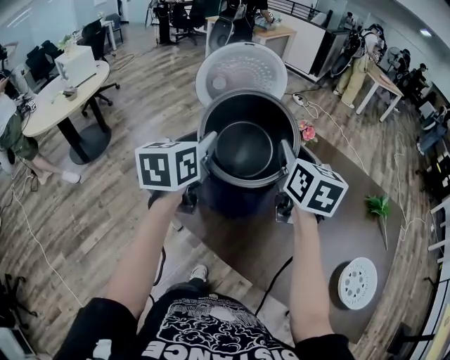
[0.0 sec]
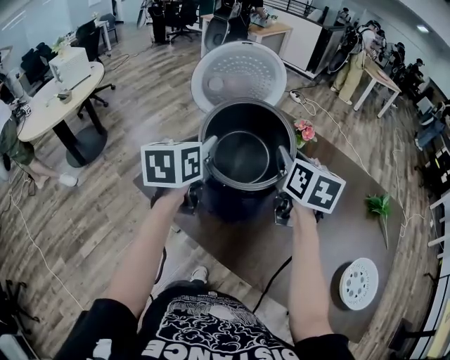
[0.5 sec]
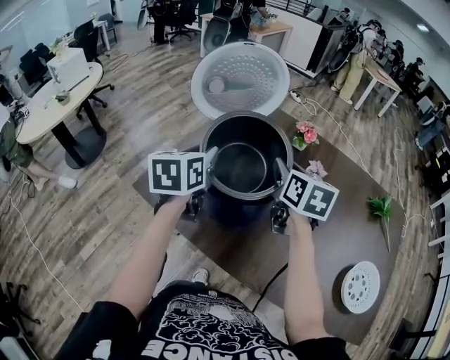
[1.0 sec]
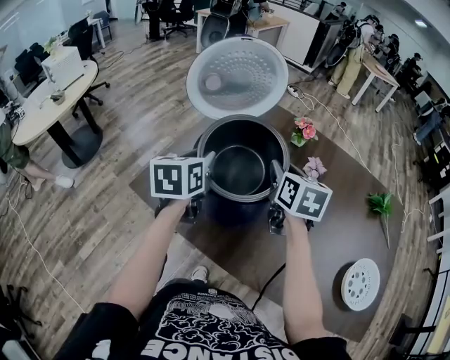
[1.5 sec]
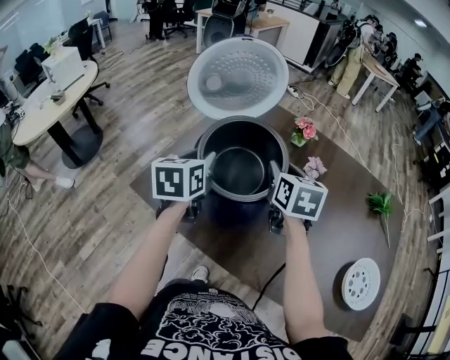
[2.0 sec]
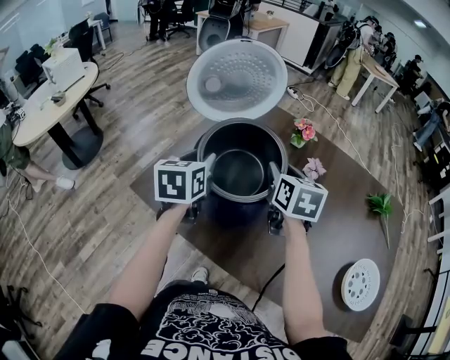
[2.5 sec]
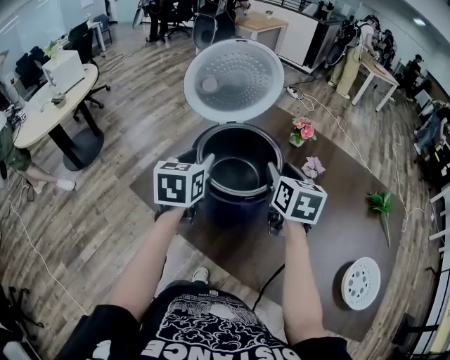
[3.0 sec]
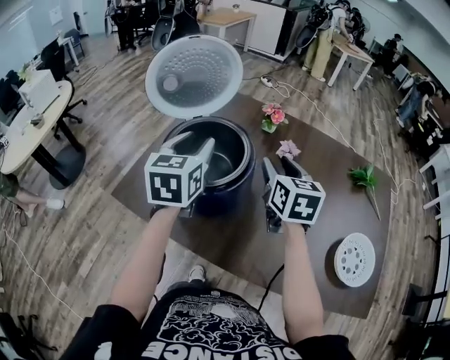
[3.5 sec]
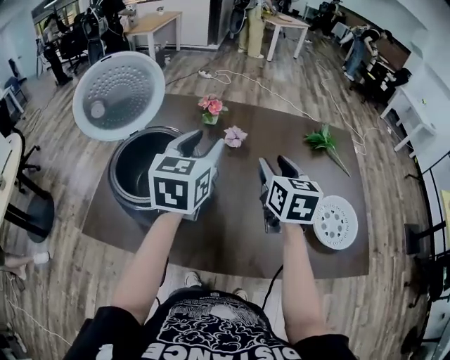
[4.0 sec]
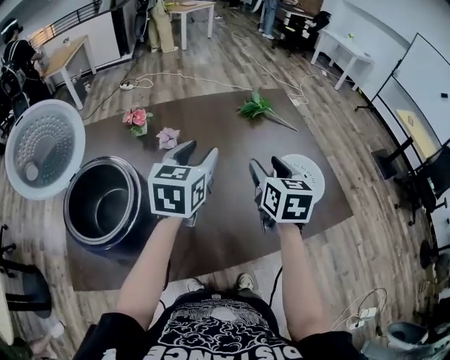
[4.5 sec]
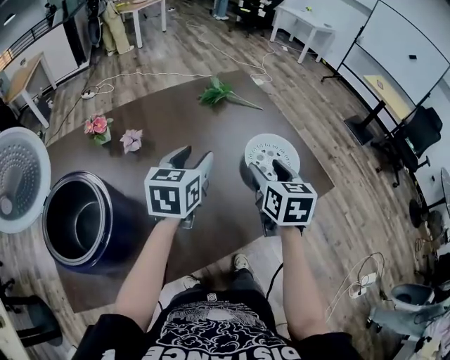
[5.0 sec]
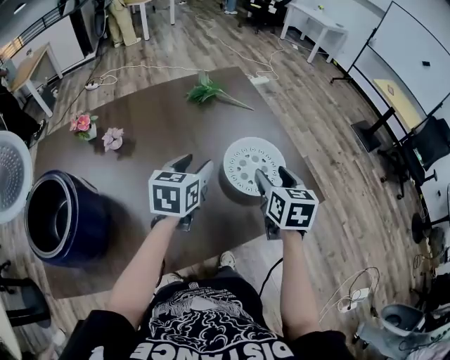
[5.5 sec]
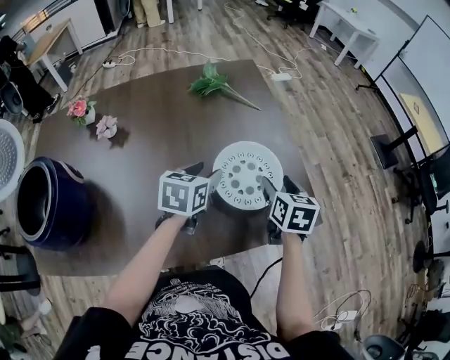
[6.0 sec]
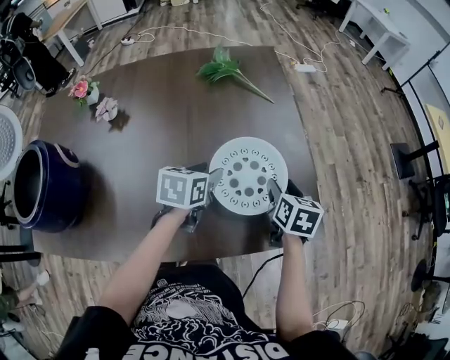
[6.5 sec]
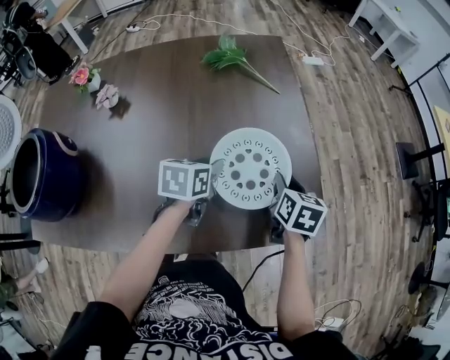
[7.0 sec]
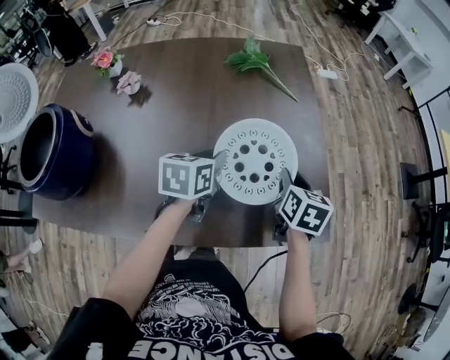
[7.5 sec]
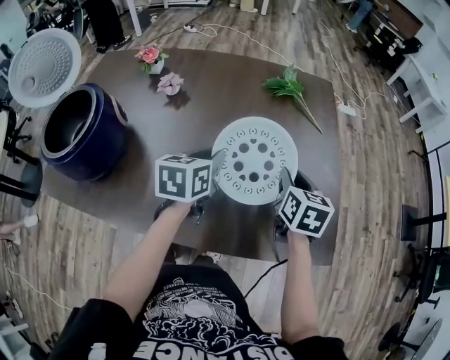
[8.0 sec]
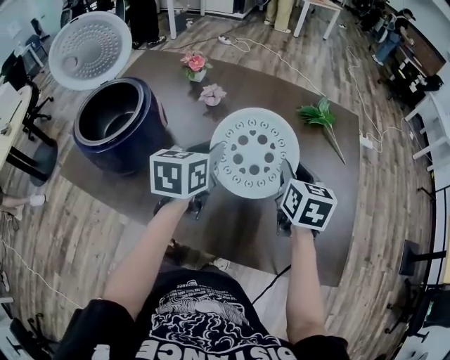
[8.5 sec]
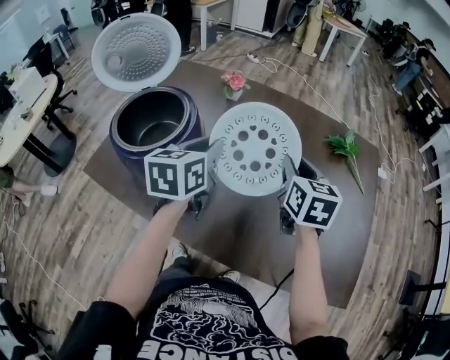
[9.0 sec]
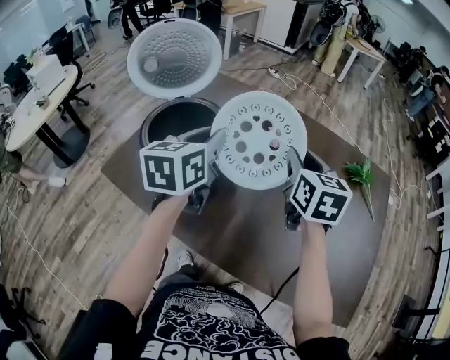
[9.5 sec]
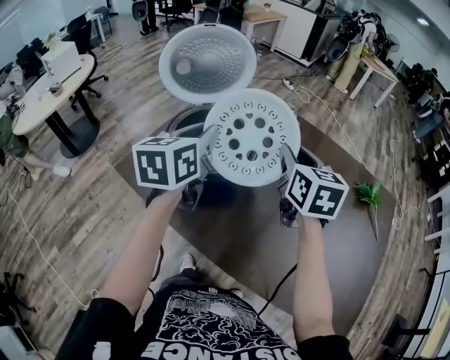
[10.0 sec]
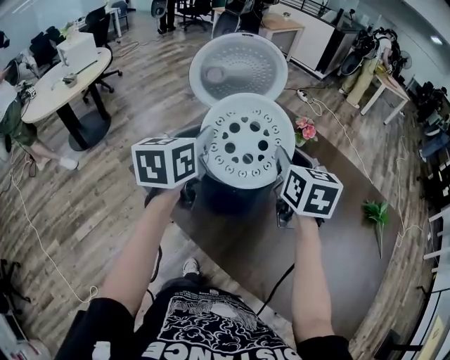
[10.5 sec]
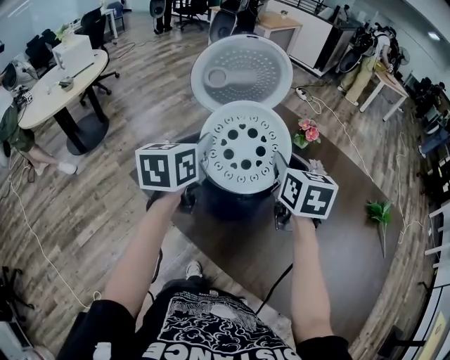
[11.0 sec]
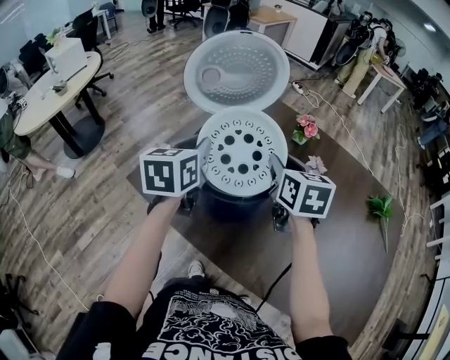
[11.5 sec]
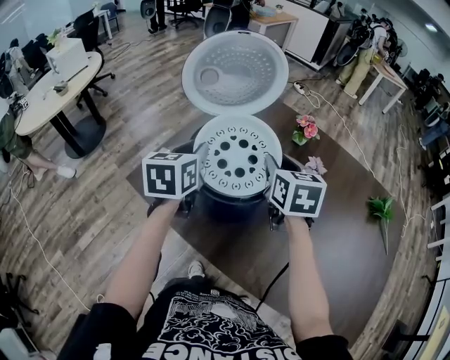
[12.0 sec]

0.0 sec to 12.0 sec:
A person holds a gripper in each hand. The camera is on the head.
0.0 sec to 2.0 sec: Both grippers move downward, roughly 10 cm.
2.0 sec to 4.0 sec: The right gripper changes place by roughly 25 cm, and rotates approximately 20 degrees. Meanwhile the left gripper changes place by approximately 30 cm, and turns by about 30 degrees.
4.0 sec to 6.0 sec: The two grippers travel together, roughly 40 cm. The right gripper rotates about 30 degrees. The left gripper rotates roughly 40 degrees.
6.0 sec to 8.0 sec: The two grippers go about 10 cm to the left. The left gripper changes its angle by some 30 degrees. The right gripper closes its fingers.
8.0 sec to 10.0 sec: The two grippers travel together, approximately 40 cm. The right gripper rotates about 40 degrees. The left gripper swivels roughly 40 degrees.
10.0 sec to 12.0 sec: The two grippers go roughly 15 cm to the left and downward.

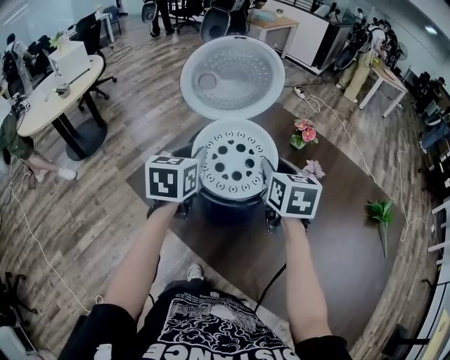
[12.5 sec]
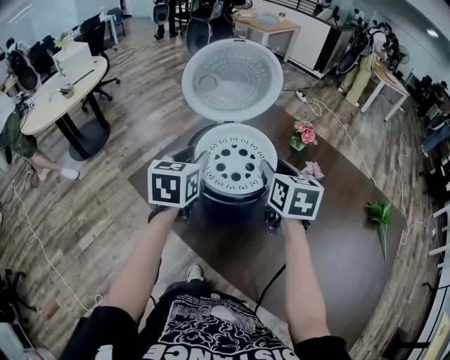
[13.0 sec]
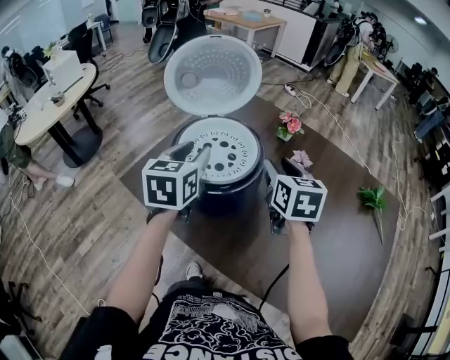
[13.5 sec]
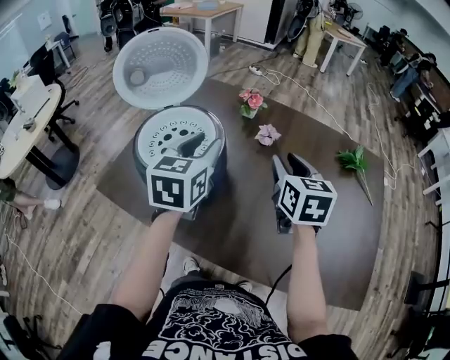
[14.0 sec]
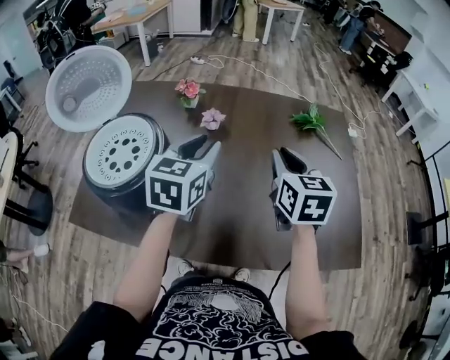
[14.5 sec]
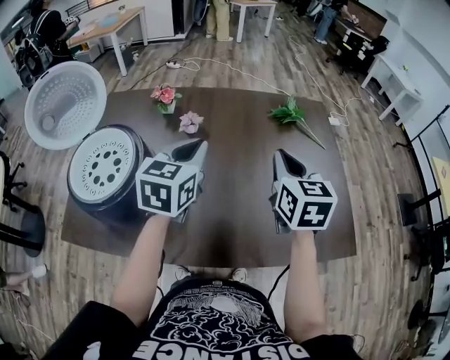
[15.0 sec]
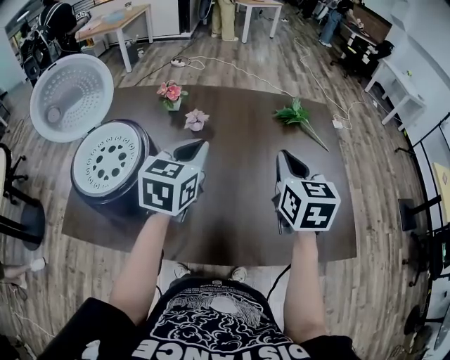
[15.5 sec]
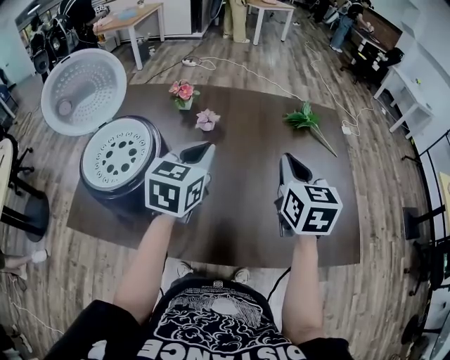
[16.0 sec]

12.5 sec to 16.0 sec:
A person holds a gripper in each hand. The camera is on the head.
12.5 sec to 14.5 sec: The right gripper ends up roughly 35 cm from where it was, and changes its angle by about 30 degrees, while the left gripper changes place by approximately 35 cm, and rotates approximately 40 degrees.
14.5 sec to 16.0 sec: The grippers make only small movements.

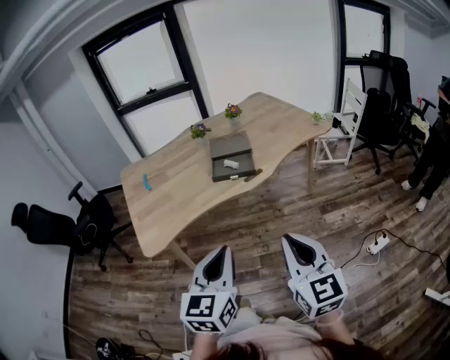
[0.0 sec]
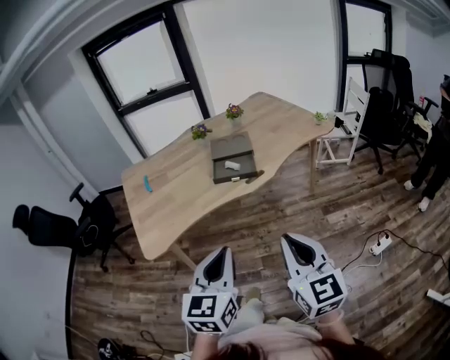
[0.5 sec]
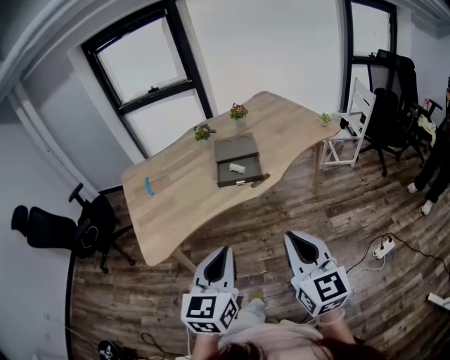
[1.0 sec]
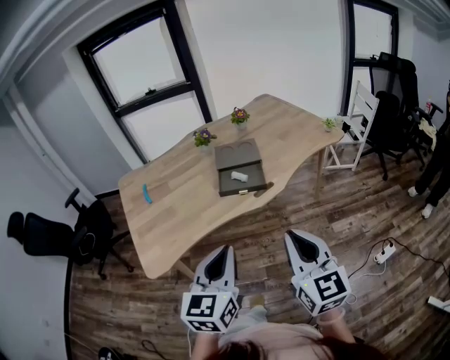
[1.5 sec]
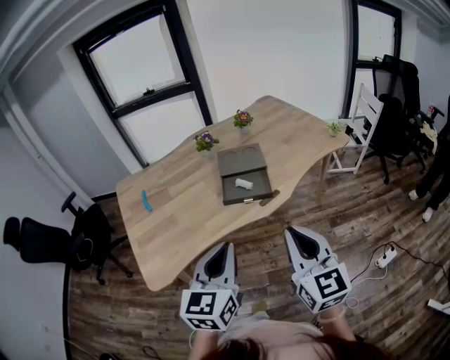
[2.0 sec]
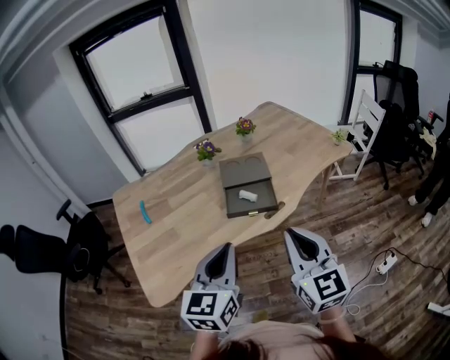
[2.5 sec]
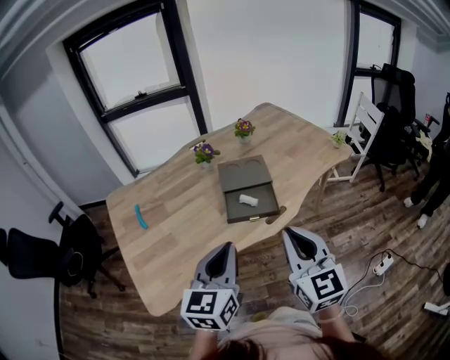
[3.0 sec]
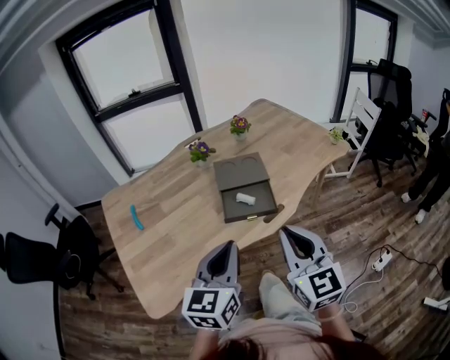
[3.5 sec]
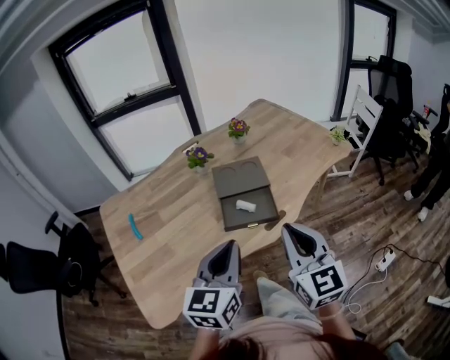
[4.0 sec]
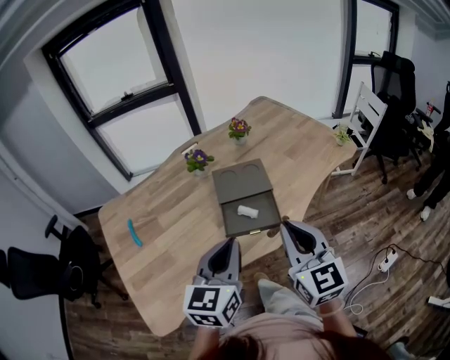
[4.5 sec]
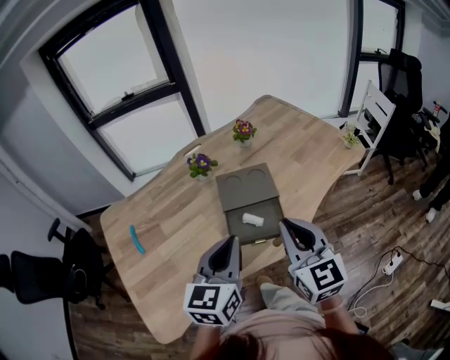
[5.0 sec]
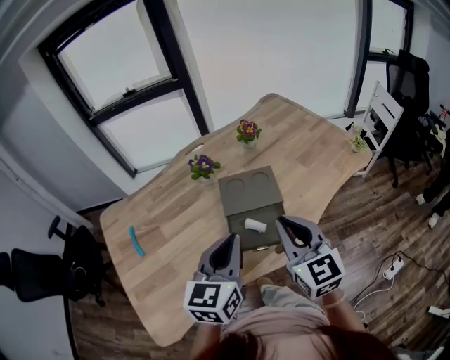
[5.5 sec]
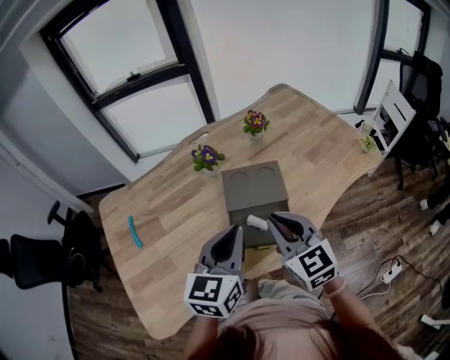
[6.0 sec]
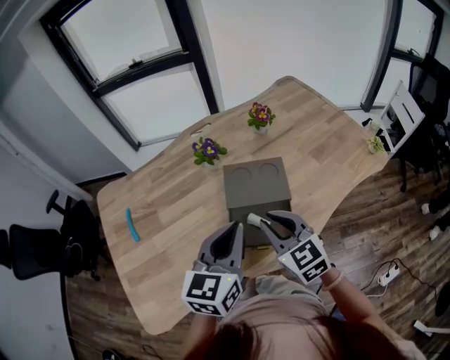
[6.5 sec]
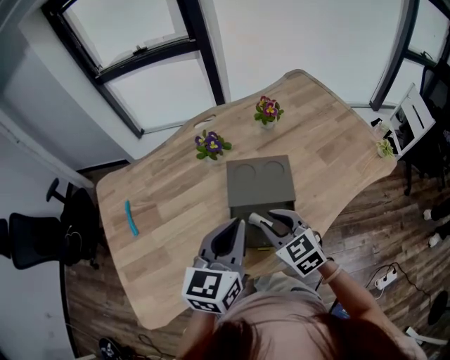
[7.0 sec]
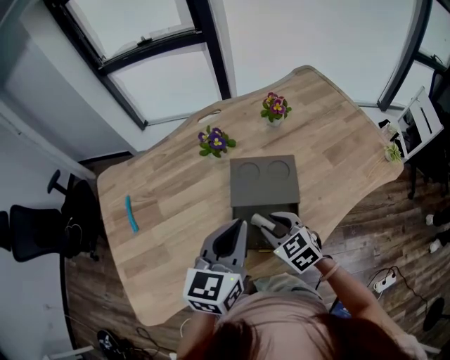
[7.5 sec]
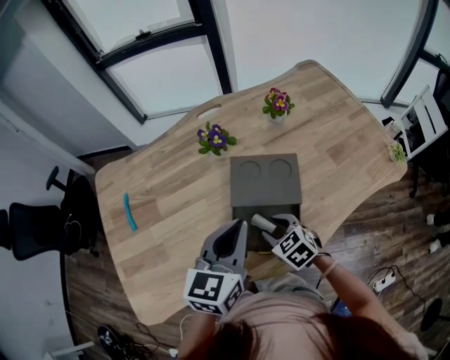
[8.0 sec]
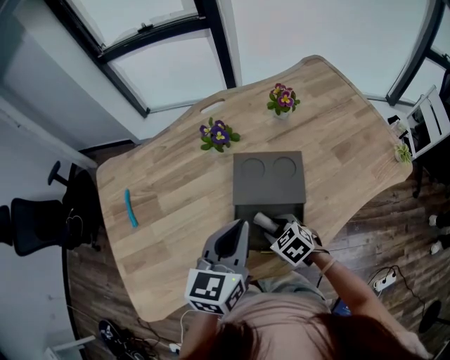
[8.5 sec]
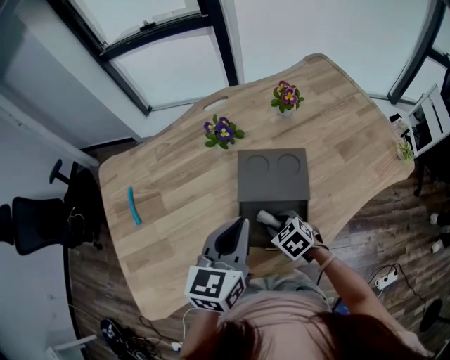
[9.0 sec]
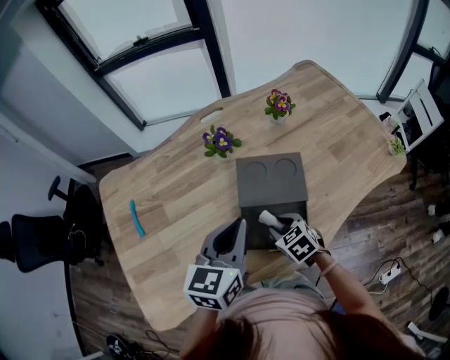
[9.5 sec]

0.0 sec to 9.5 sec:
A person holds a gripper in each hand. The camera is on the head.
0.0 sec to 2.0 sec: Both grippers travel together forward, some 20 cm.
2.0 sec to 4.0 sec: The grippers both shift forward by roughly 15 cm.
4.0 sec to 5.5 sec: Both grippers travel together forward, approximately 15 cm.
5.5 sec to 7.5 sec: The right gripper shifts roughly 25 cm downward and forward, angles its fingers downward, by approximately 30 degrees, and opens up. The left gripper heads forward, covering about 10 cm.
7.5 sec to 9.5 sec: The right gripper shifts roughly 5 cm downward.

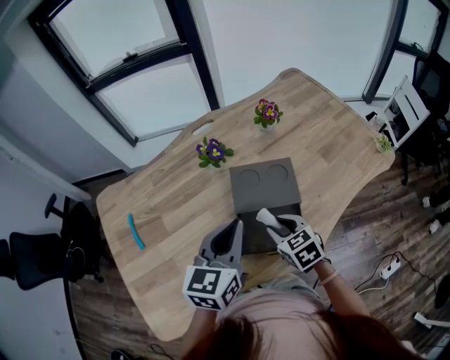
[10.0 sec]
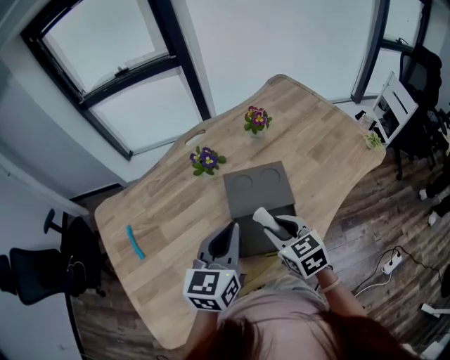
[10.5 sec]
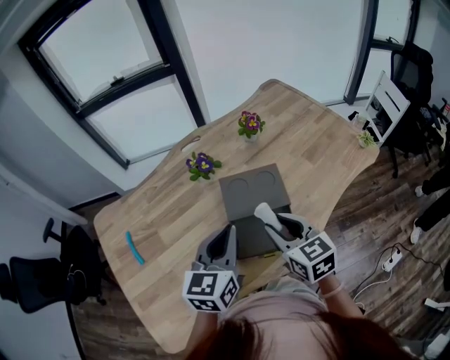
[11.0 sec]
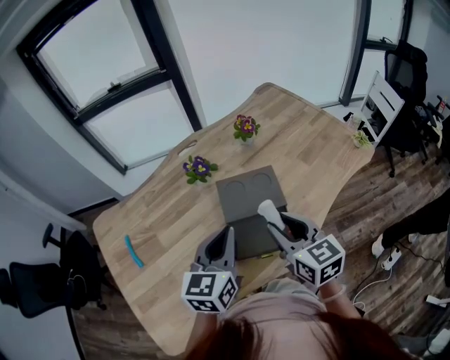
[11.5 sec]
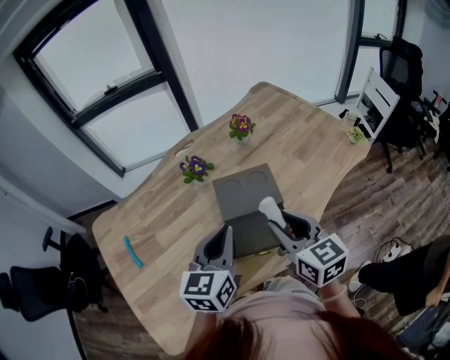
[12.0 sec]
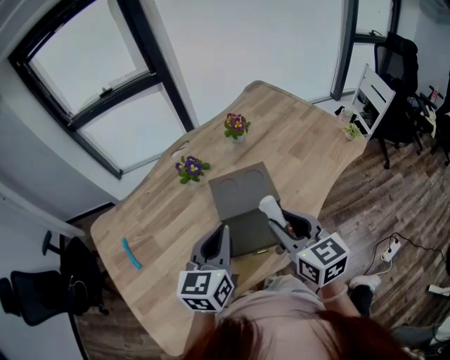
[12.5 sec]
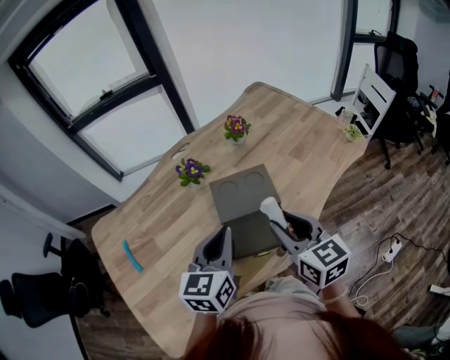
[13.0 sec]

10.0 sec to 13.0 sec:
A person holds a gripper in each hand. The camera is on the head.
10.0 sec to 11.5 sec: The right gripper goes roughly 15 cm upward, and changes its angle by approximately 30 degrees.
11.5 sec to 13.0 sec: There are only small adjustments of the grippers.
